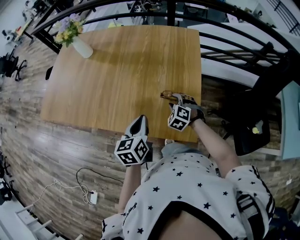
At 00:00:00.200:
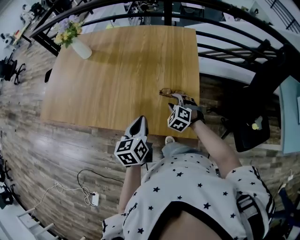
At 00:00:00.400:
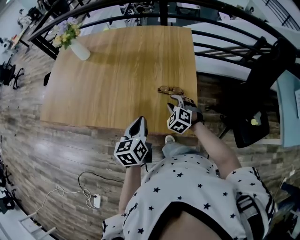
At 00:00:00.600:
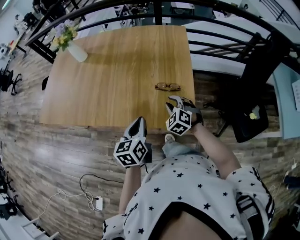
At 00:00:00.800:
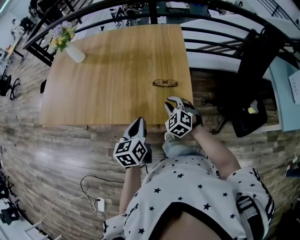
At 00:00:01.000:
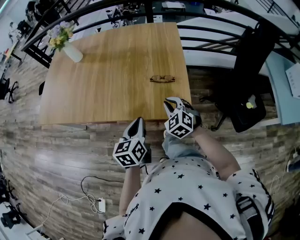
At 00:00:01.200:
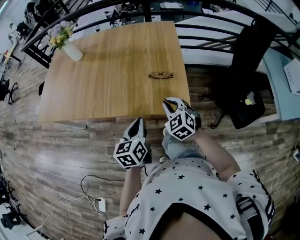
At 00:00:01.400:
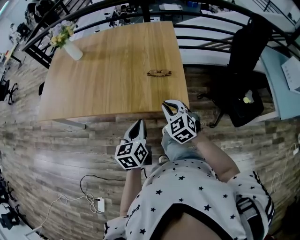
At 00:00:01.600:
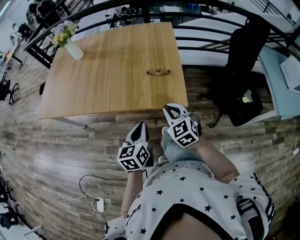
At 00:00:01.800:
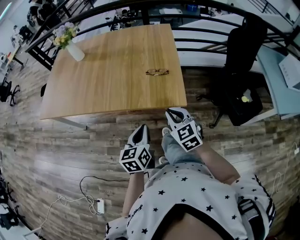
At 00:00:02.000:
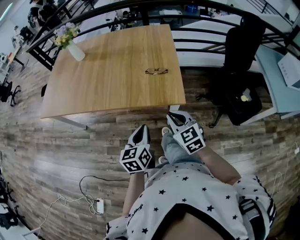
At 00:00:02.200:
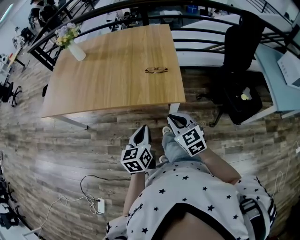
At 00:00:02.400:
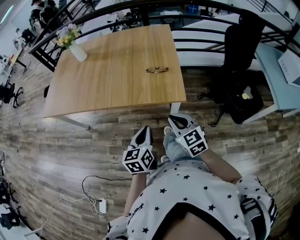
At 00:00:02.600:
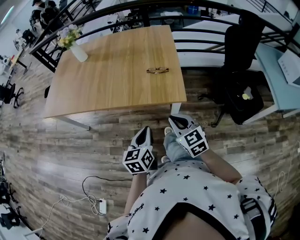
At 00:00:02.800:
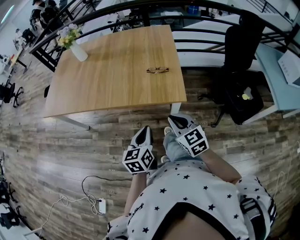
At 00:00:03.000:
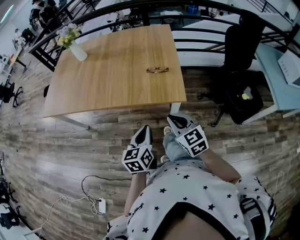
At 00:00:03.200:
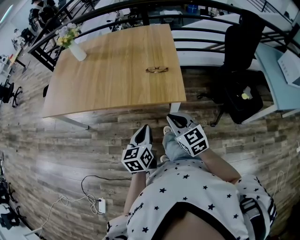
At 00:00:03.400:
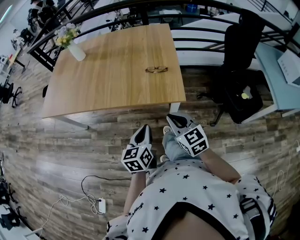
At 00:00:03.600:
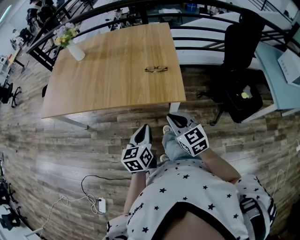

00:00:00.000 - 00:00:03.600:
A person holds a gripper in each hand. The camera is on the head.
00:00:00.000 - 00:00:01.800: The left gripper heads backward, covering about 25 cm; the right gripper heads backward and upward, covering roughly 30 cm, turns by roughly 40 degrees, and closes its fingers.
00:00:01.800 - 00:00:03.600: The right gripper heads backward, covering approximately 5 cm.

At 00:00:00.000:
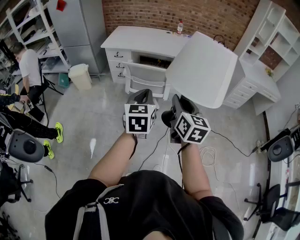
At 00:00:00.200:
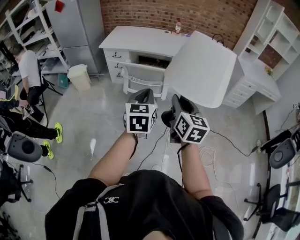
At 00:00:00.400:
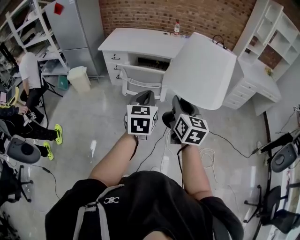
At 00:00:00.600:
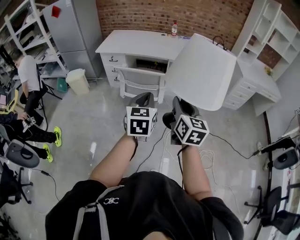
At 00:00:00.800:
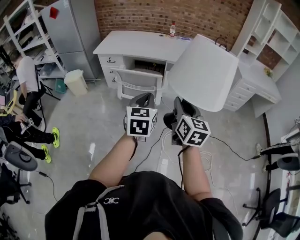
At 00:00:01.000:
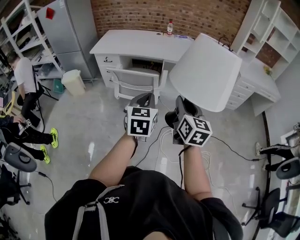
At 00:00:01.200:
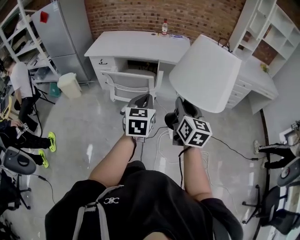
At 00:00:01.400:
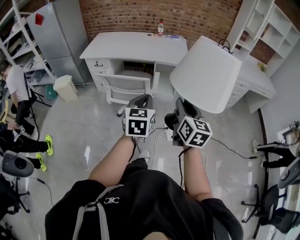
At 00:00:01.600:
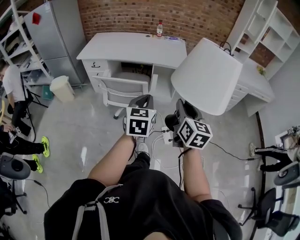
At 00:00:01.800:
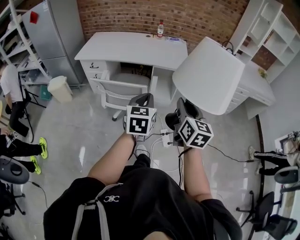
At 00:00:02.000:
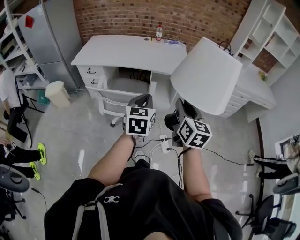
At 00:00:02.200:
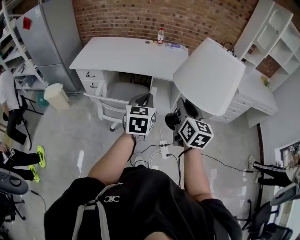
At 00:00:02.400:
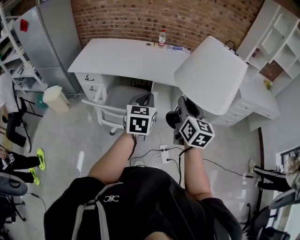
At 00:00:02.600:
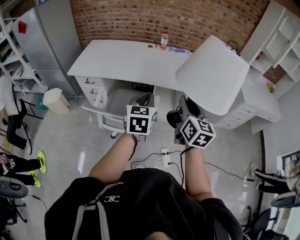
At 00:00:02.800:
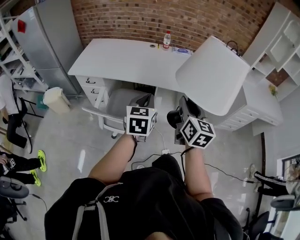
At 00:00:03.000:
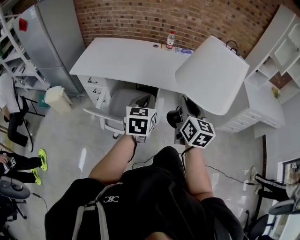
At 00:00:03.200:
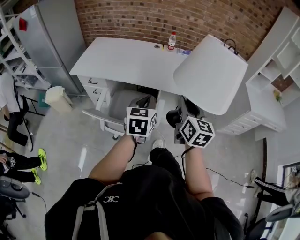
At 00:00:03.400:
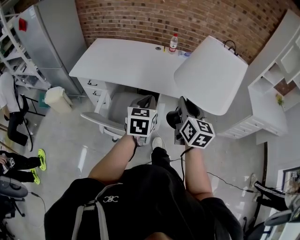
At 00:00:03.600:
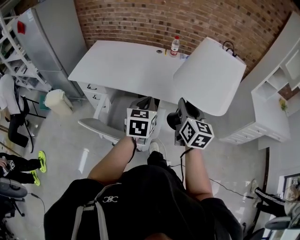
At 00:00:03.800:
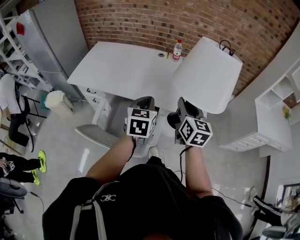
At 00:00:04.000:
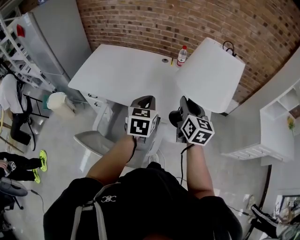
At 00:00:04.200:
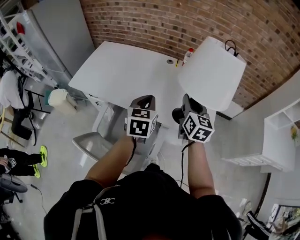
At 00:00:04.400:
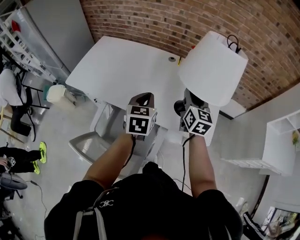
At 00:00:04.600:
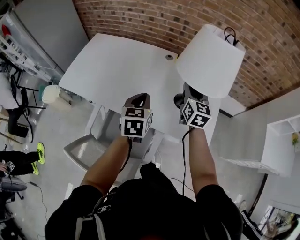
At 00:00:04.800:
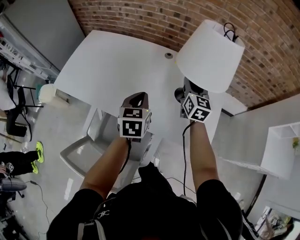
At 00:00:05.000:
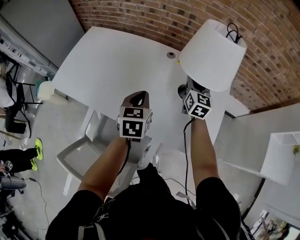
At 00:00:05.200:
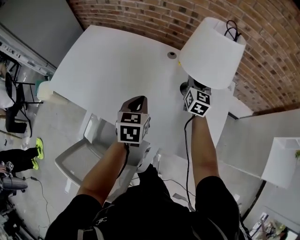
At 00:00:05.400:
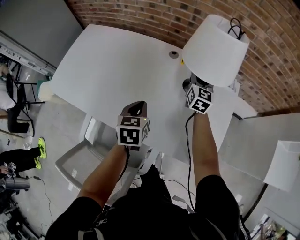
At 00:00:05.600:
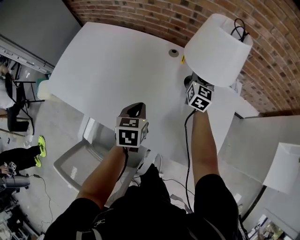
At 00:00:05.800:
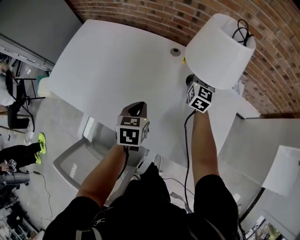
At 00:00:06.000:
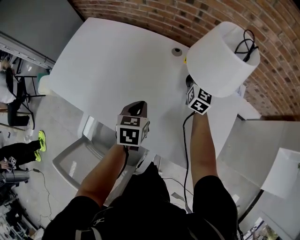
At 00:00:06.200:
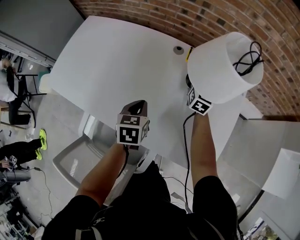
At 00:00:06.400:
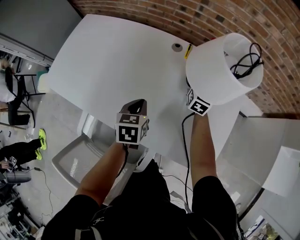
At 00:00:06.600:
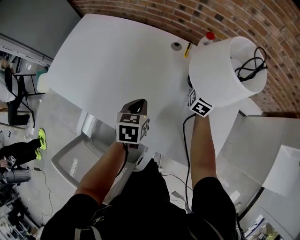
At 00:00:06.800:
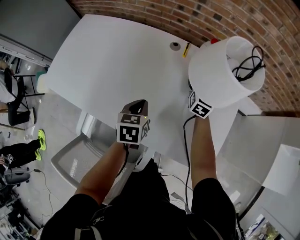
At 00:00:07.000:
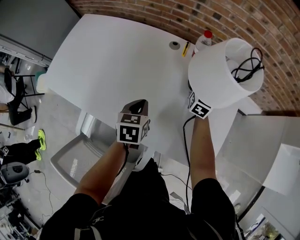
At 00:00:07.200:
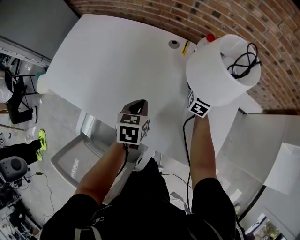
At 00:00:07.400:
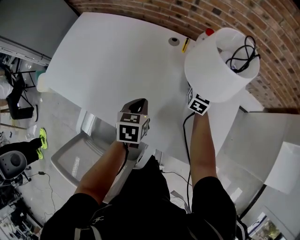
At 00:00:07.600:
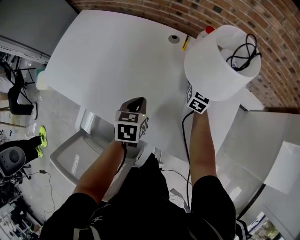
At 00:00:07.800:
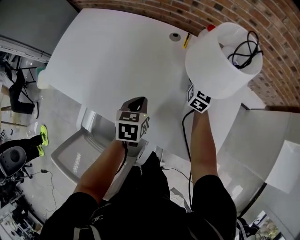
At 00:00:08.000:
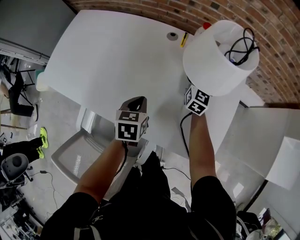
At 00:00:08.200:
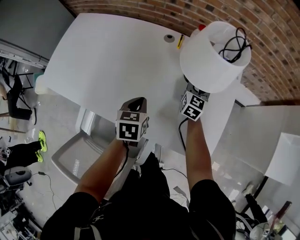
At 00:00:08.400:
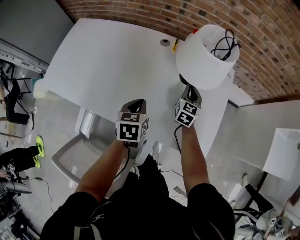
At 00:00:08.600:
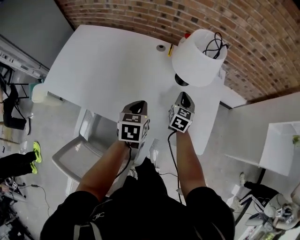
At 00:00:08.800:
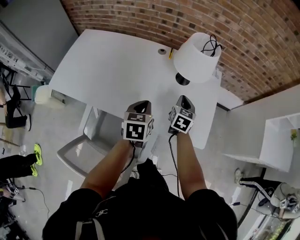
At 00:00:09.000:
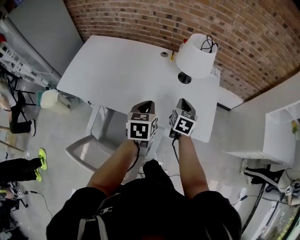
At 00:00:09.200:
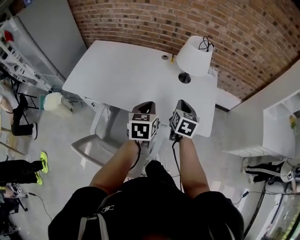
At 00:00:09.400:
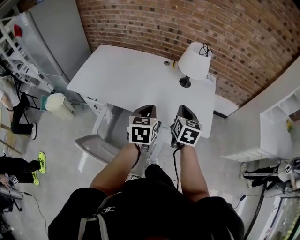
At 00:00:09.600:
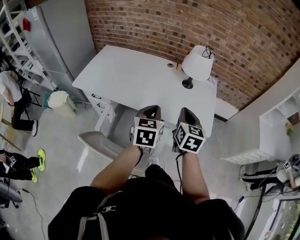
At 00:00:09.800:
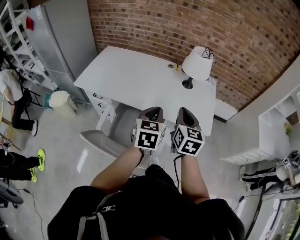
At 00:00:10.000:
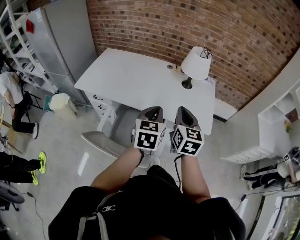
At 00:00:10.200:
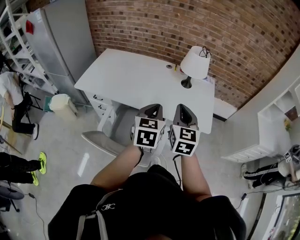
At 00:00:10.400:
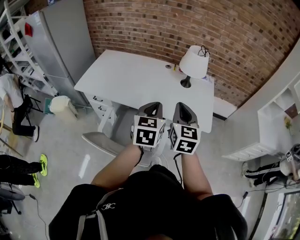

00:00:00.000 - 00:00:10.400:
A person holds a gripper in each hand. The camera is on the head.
00:00:00.000 - 00:00:01.400: The two grippers go roughly 20 cm to the right and forward.
00:00:01.400 - 00:00:03.000: Both grippers move forward, about 40 cm.
00:00:03.000 - 00:00:04.400: Both grippers travel together forward, about 40 cm.
00:00:04.400 - 00:00:06.000: The right gripper travels forward and downward by about 35 cm. Meanwhile the left gripper heads downward and forward, covering roughly 25 cm.
00:00:06.000 - 00:00:07.400: The right gripper moves some 5 cm.
00:00:07.400 - 00:00:09.000: The left gripper is displaced upward and backward by some 20 cm; the right gripper goes some 30 cm backward, swivels approximately 20 degrees, and closes its fingers.
00:00:09.000 - 00:00:10.400: The grippers both shift backward and upward by about 25 cm. The right gripper rotates about 20 degrees.

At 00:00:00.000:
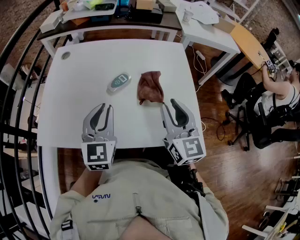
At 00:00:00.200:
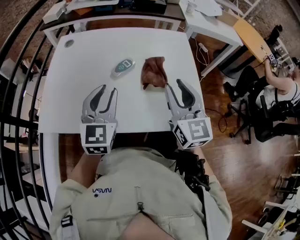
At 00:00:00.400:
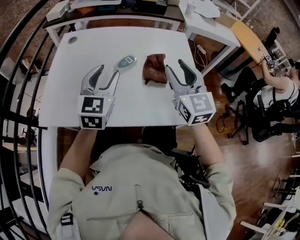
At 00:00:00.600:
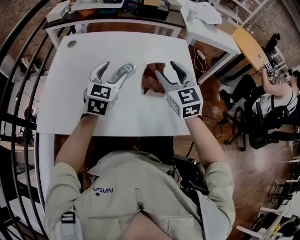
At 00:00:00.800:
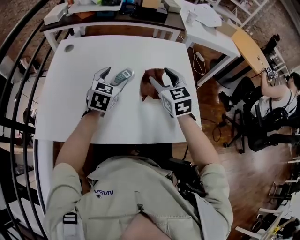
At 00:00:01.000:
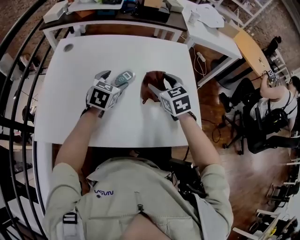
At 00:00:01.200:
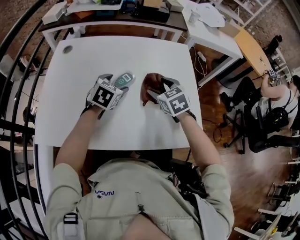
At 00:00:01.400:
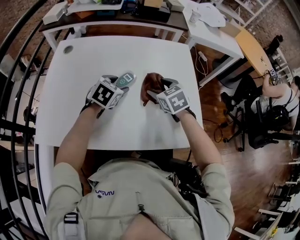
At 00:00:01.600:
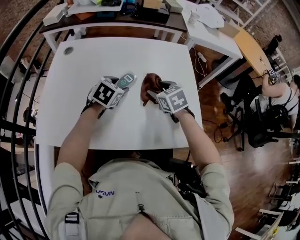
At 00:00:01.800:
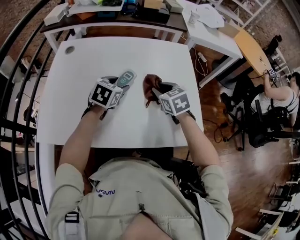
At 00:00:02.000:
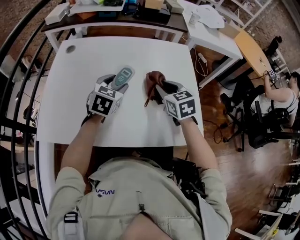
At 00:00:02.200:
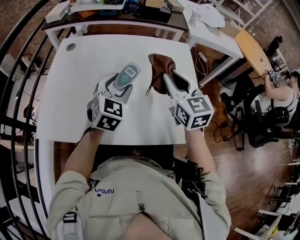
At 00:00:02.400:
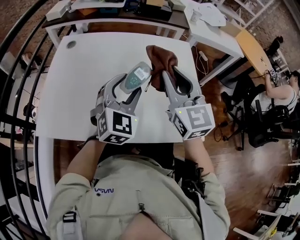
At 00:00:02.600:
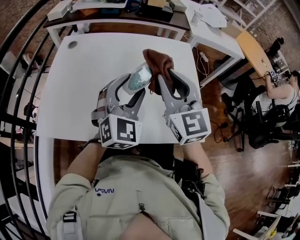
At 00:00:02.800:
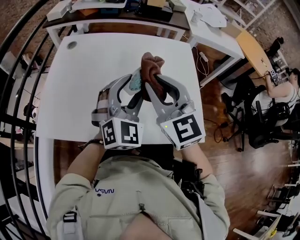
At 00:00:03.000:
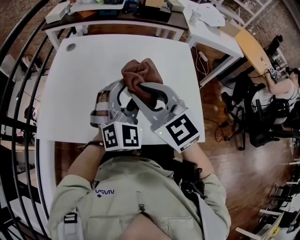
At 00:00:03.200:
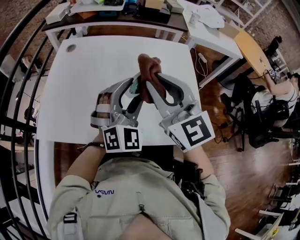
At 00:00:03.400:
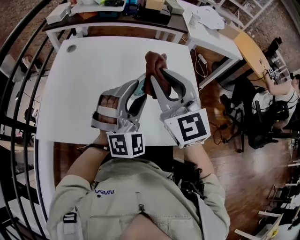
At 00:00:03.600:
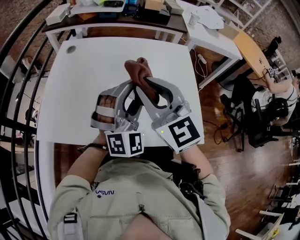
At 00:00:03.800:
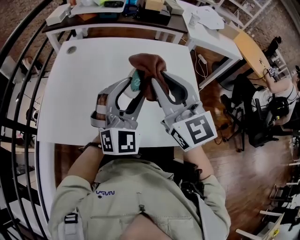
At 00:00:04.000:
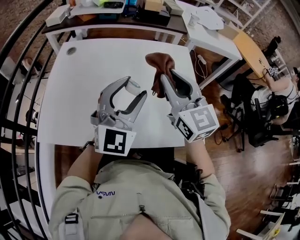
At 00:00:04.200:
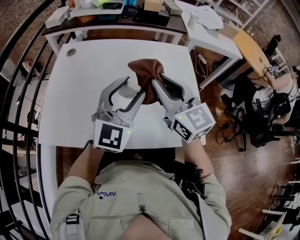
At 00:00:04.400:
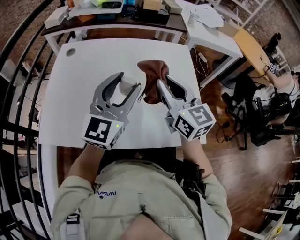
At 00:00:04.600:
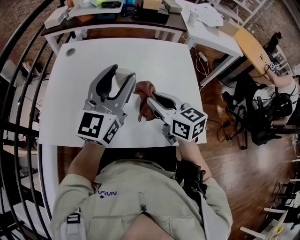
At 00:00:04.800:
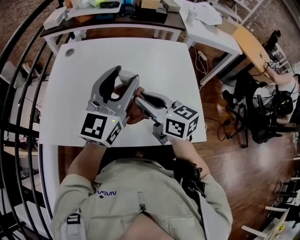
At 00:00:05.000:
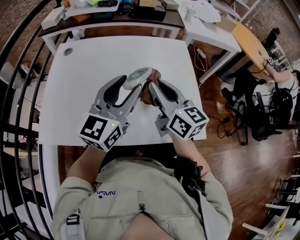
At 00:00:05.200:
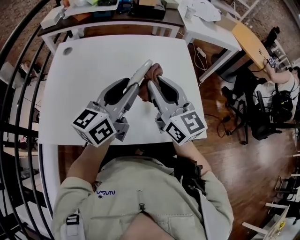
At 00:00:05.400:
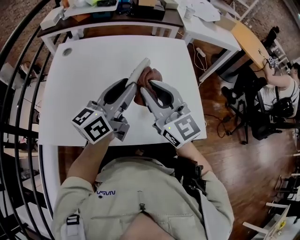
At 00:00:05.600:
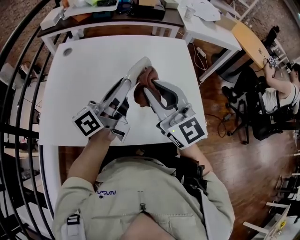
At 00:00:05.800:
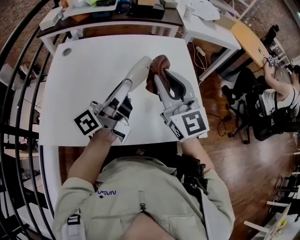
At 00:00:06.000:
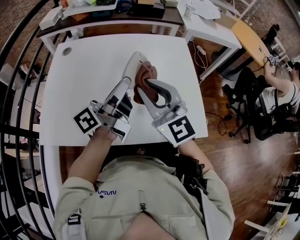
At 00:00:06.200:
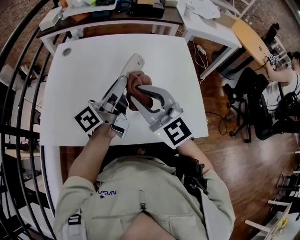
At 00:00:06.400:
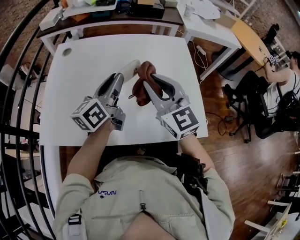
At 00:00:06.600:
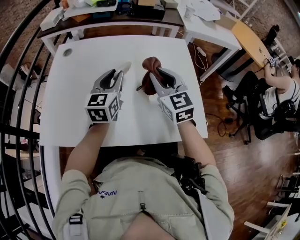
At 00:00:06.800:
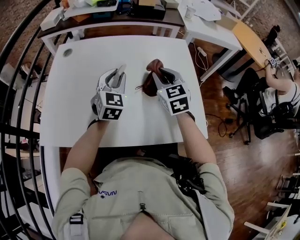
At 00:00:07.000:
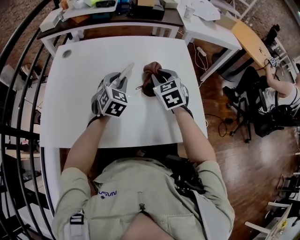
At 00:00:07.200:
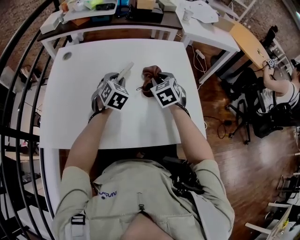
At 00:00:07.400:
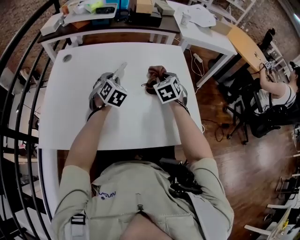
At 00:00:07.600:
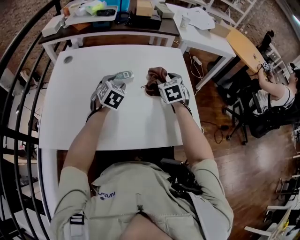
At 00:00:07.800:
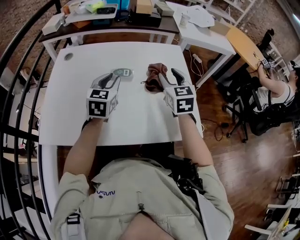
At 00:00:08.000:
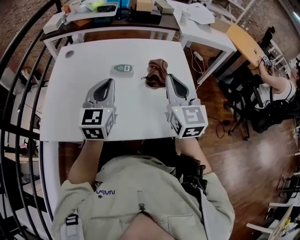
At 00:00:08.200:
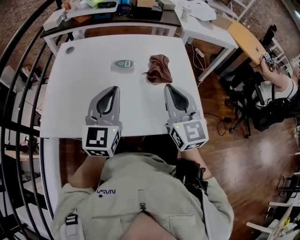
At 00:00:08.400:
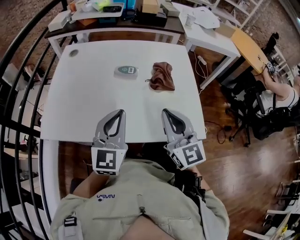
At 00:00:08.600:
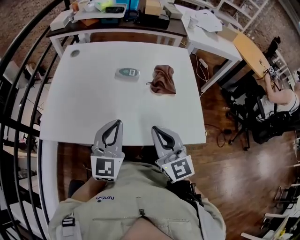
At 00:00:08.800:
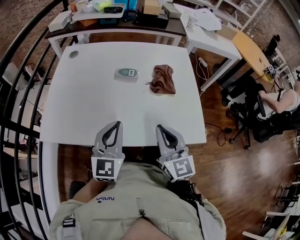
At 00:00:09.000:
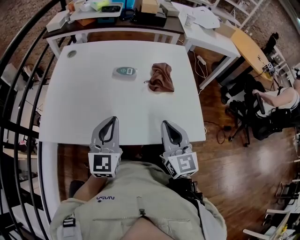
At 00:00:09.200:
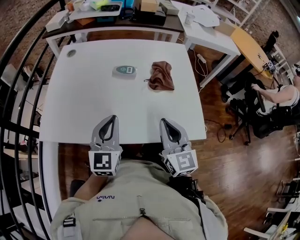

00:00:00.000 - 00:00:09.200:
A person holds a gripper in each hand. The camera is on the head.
00:00:00.000 - 00:00:01.600: Both grippers travel together forward and downward, about 20 cm. The left gripper tips its fingers downward by some 30 degrees, and opens, while the right gripper tips its fingers downward by approximately 40 degrees, and opens.
00:00:01.600 - 00:00:03.000: The left gripper goes approximately 20 cm upward and backward, and tilts its fingers some 40 degrees upward. Meanwhile the right gripper travels upward, backward and to the left by approximately 25 cm, angles its fingers upward, by roughly 30 degrees, and closes its fingers.
00:00:03.000 - 00:00:04.600: The left gripper goes approximately 5 cm upward, and twists some 40 degrees counterclockwise, seen from behind; the right gripper goes approximately 10 cm downward and to the right, and turns by roughly 30 degrees.
00:00:04.600 - 00:00:06.200: The right gripper heads to the left and upward, covering some 10 cm, and rotates about 40 degrees, while the left gripper travels downward by approximately 5 cm, and rotates around the line of its fingers by some 60 degrees, counterclockwise from behind.
00:00:06.200 - 00:00:07.600: The right gripper travels forward, to the right and downward by about 30 cm, angles its fingers downward, by roughly 30 degrees, and opens; the left gripper moves downward and forward, approximately 20 cm, and angles its fingers downward, by about 50 degrees.
00:00:07.600 - 00:00:09.200: The grippers both shift backward by roughly 25 cm. The left gripper tilts its fingers about 30 degrees upward, and closes its fingers. The right gripper points its fingers roughly 30 degrees further upward, and closes.
